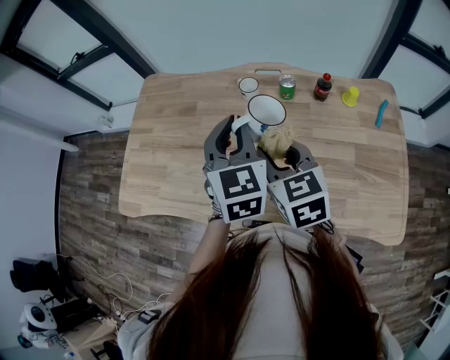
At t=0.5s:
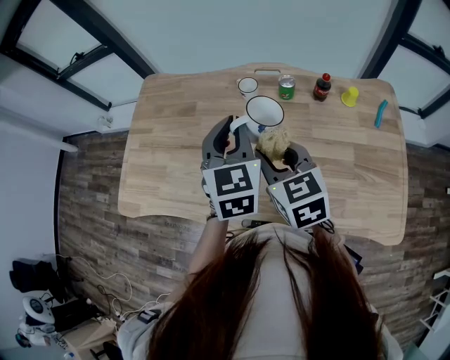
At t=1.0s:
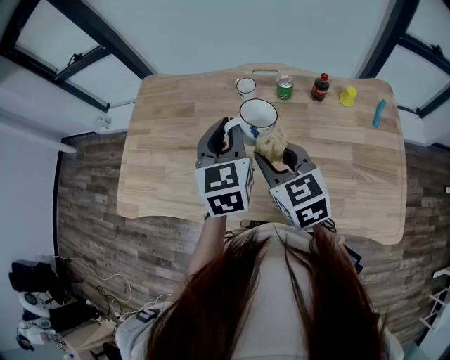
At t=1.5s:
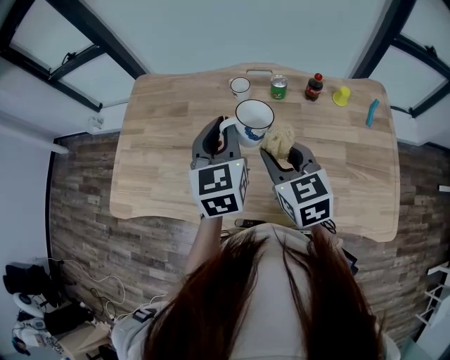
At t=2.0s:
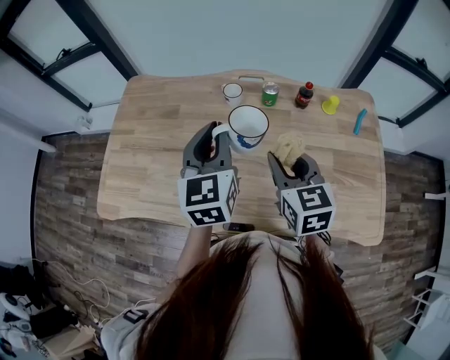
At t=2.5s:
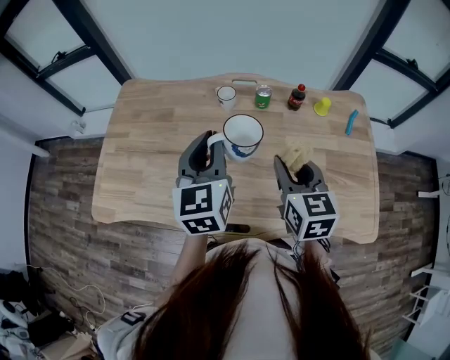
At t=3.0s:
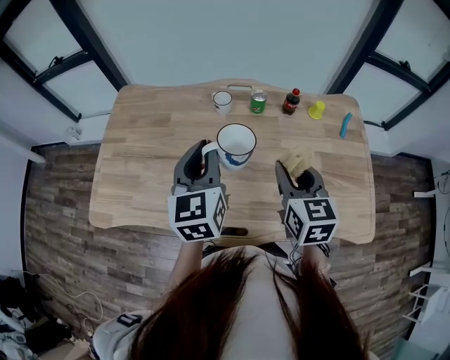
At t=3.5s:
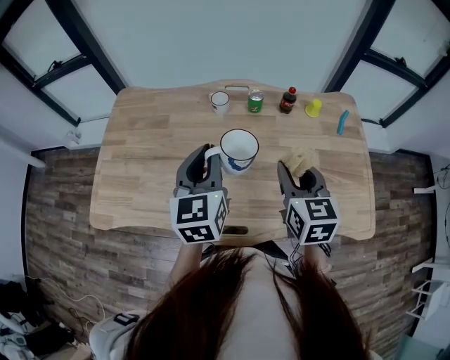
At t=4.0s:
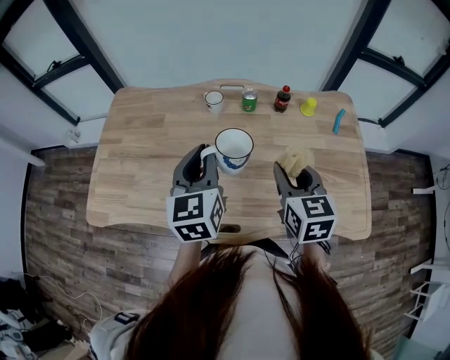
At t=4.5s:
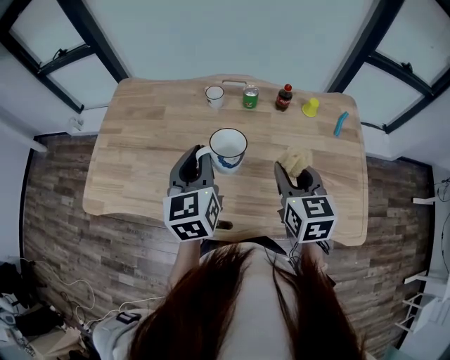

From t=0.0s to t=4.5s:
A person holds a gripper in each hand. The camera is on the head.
From t=0.0s to t=2.0s: The right gripper heads to the right, covering roughly 5 cm.
From t=2.0s to t=4.5s: The left gripper goes about 5 cm backward, while the right gripper shifts roughly 10 cm to the right.

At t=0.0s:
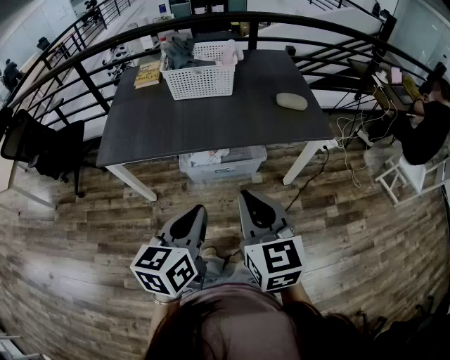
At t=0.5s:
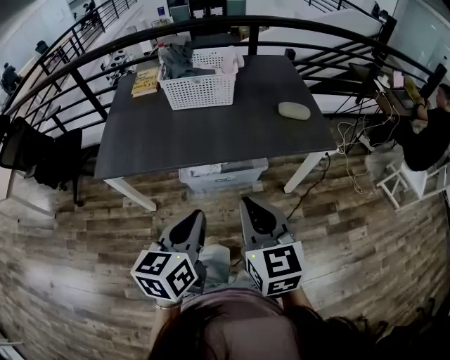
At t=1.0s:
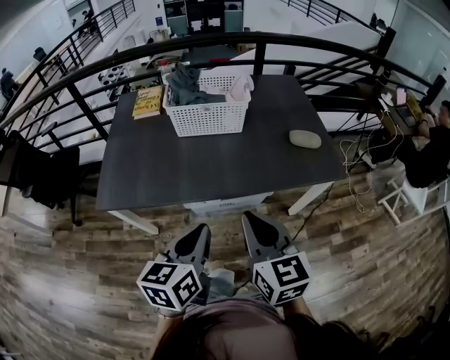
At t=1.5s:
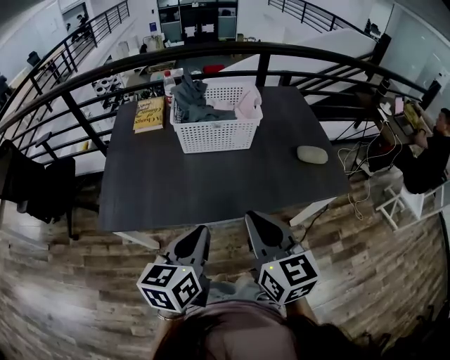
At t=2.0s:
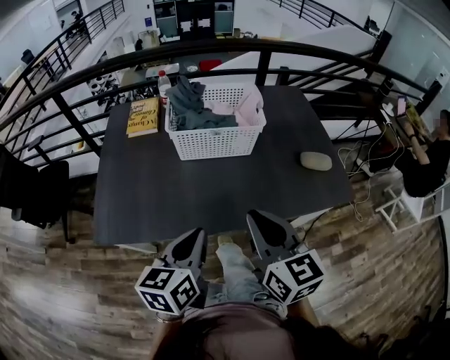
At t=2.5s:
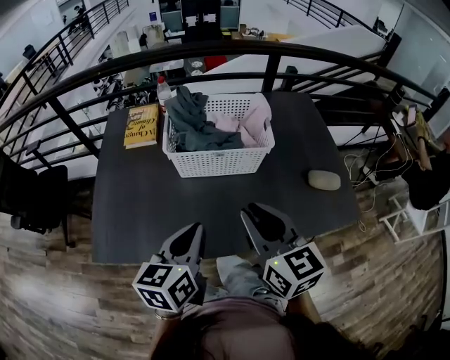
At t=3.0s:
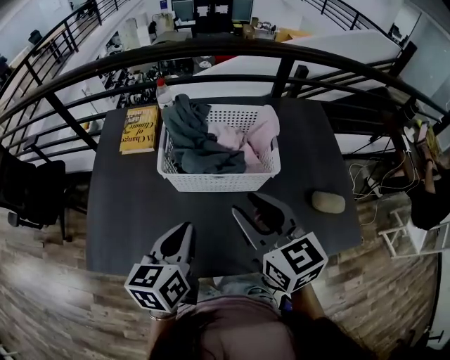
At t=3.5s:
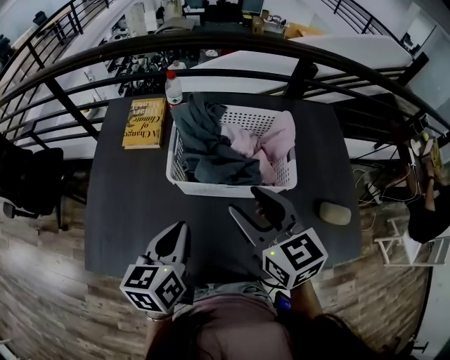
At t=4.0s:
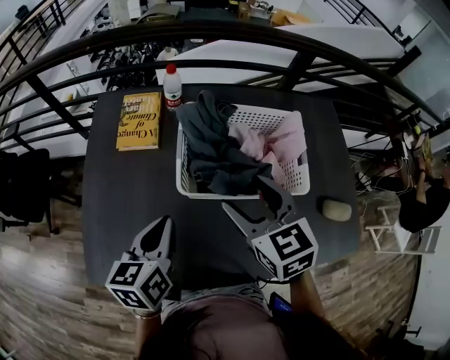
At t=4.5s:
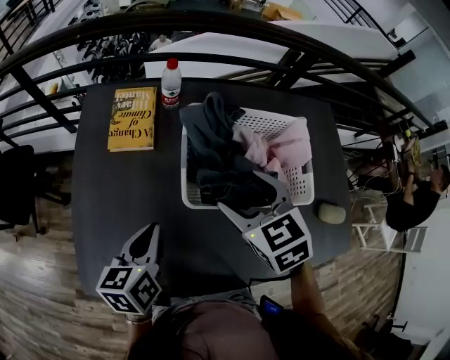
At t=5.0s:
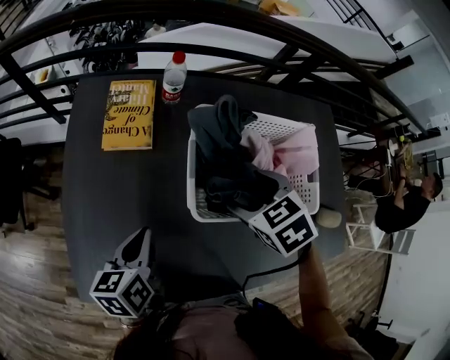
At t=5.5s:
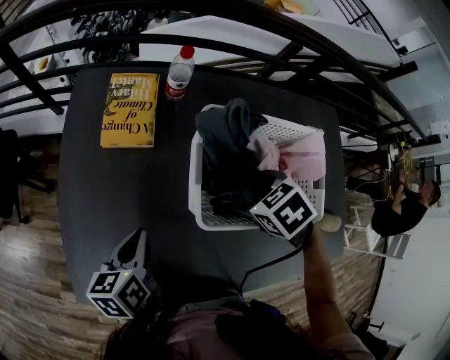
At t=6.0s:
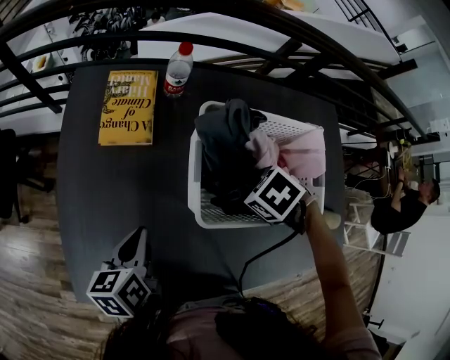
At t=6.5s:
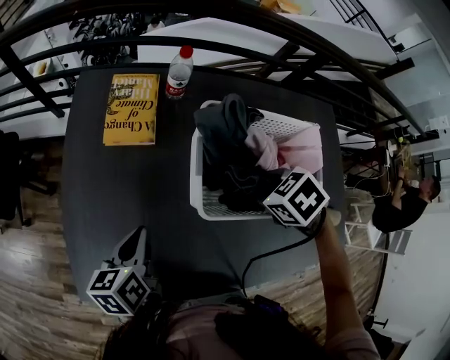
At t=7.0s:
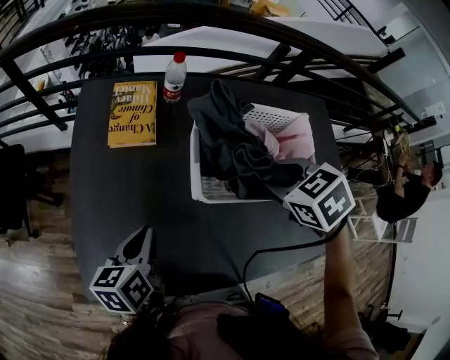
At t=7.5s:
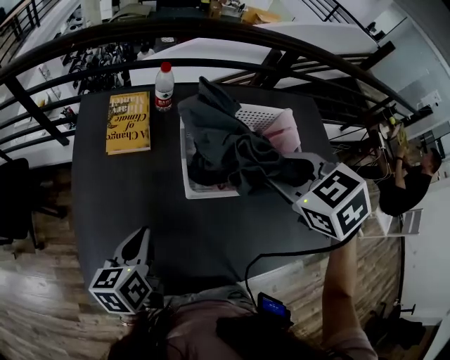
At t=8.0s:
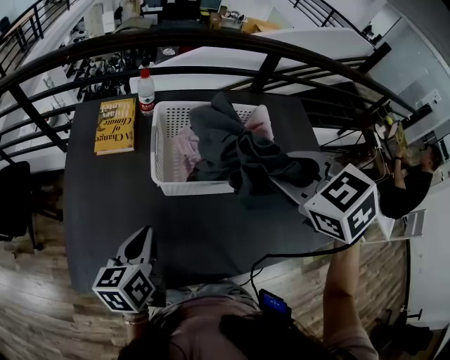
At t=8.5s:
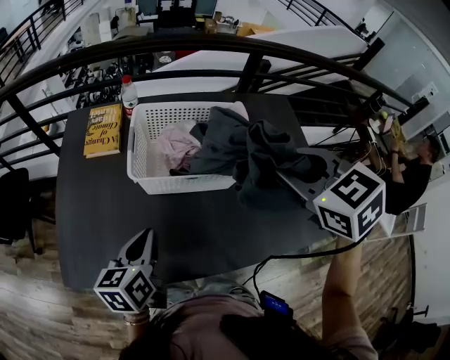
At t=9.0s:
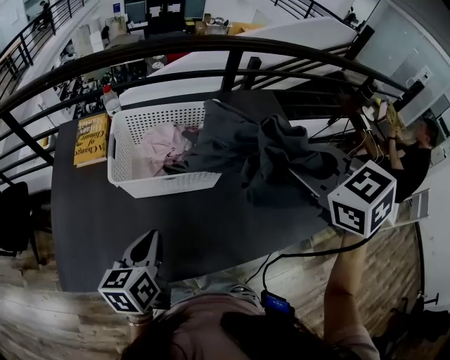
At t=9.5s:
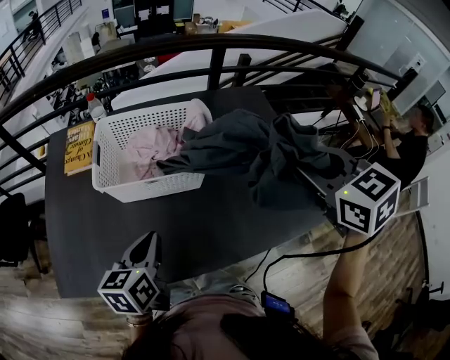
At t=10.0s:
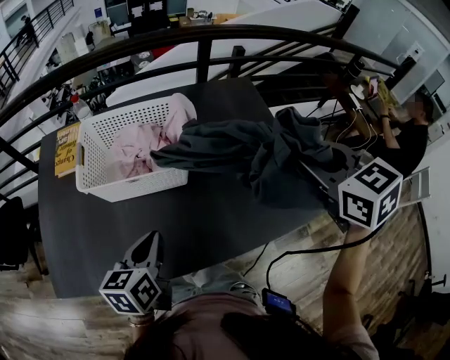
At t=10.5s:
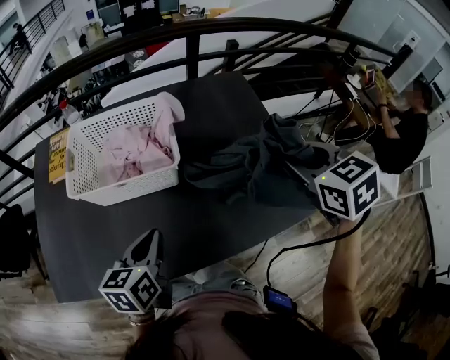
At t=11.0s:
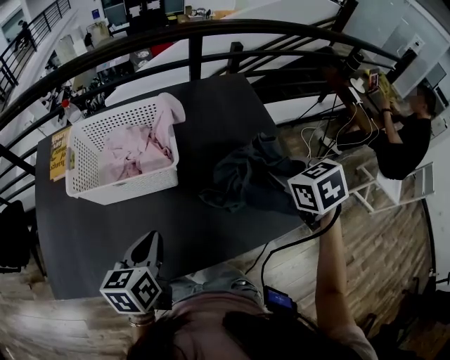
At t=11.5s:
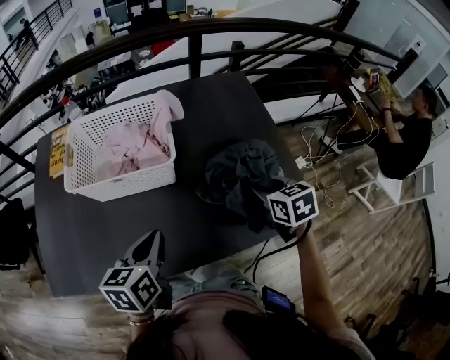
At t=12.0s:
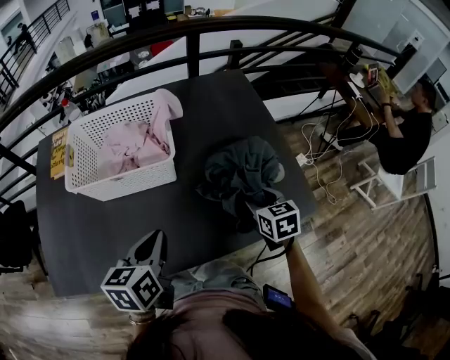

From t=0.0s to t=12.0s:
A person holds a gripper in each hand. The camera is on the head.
From t=0.0s to t=2.0s: The left gripper moves forward and to the left, some 30 cm. Meanwhile the right gripper goes some 30 cm forward.
From t=2.0s to t=4.0s: Both grippers travel together forward, roughly 30 cm. The right gripper changes its angle by approximately 30 degrees, and opens its fingers.
From t=4.0s to t=6.0s: The left gripper is displaced downward by about 10 cm, while the right gripper is displaced downward by roughly 15 cm, and angles its fingers downward, by roughly 50 degrees.
From t=6.0s to t=8.0s: The right gripper is displaced upward by some 25 cm, tilts its fingers approximately 40 degrees upward, and closes, while the left gripper moves roughly 15 cm.
From t=8.0s to t=10.0s: Both grippers move to the right, about 30 cm. The right gripper turns by about 20 degrees.
From t=10.0s to t=12.0s: The right gripper heads downward, covering approximately 30 cm, and turns by some 20 degrees, while the left gripper is displaced to the right by approximately 5 cm.

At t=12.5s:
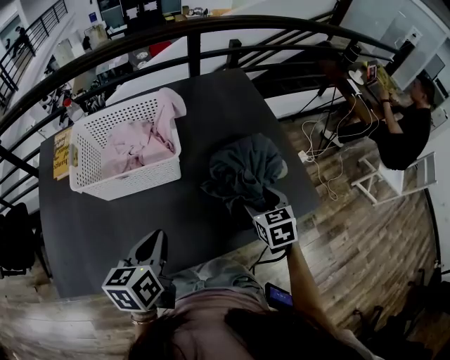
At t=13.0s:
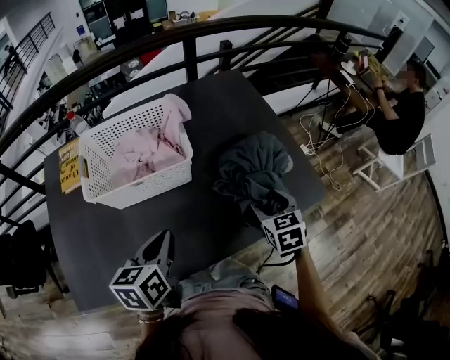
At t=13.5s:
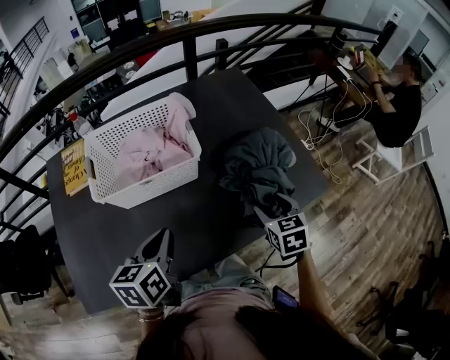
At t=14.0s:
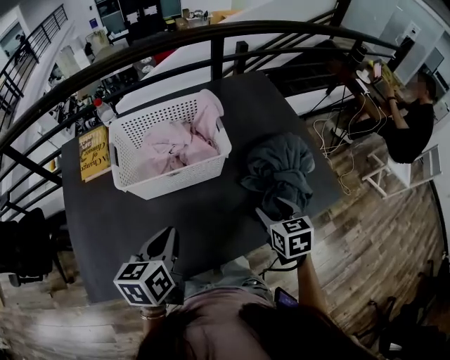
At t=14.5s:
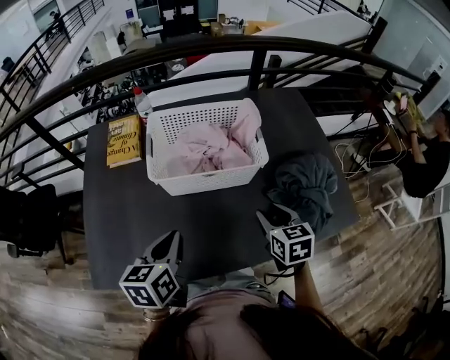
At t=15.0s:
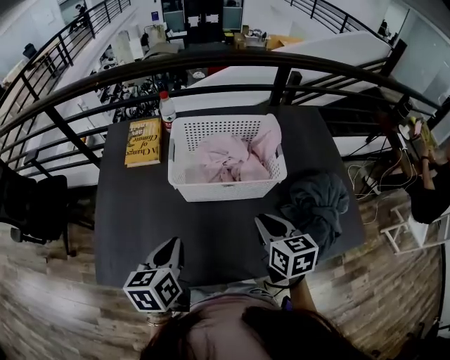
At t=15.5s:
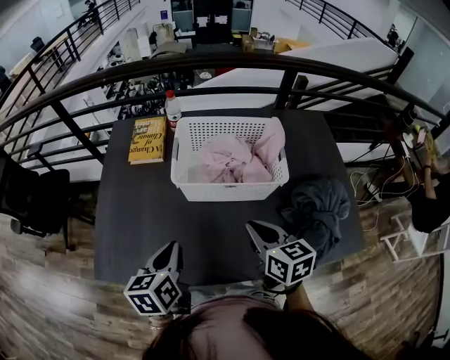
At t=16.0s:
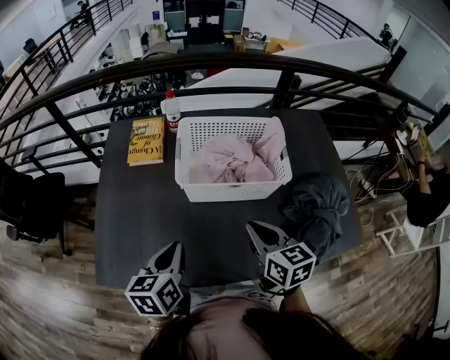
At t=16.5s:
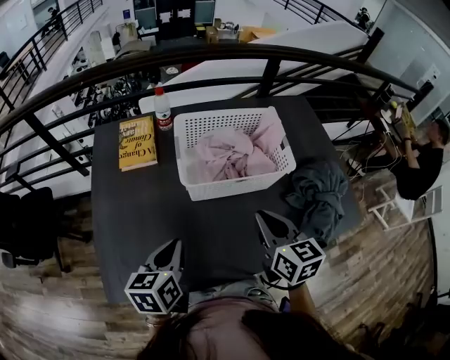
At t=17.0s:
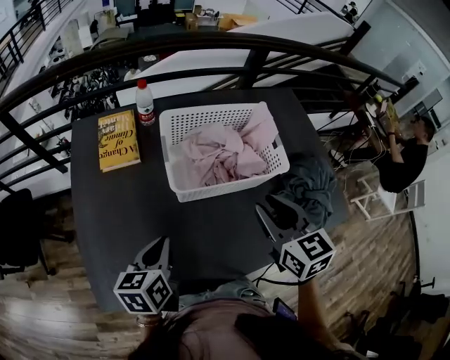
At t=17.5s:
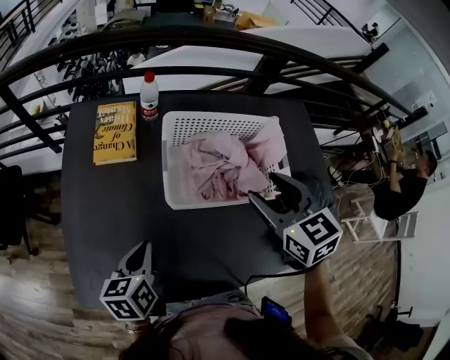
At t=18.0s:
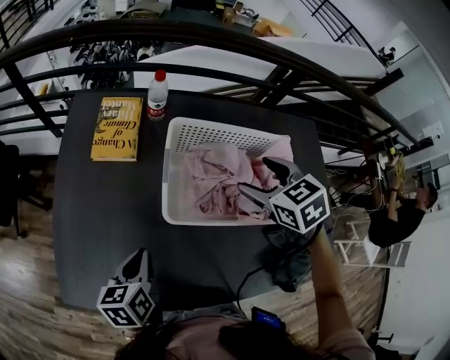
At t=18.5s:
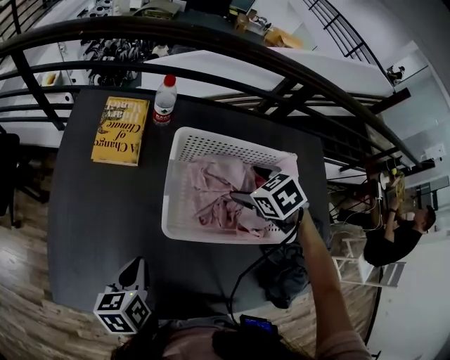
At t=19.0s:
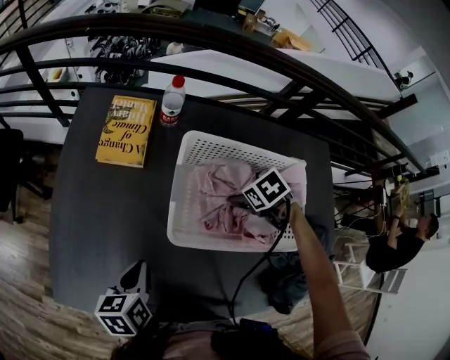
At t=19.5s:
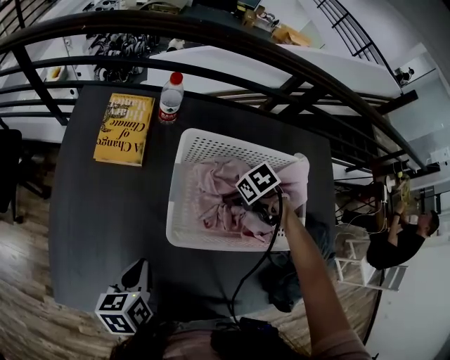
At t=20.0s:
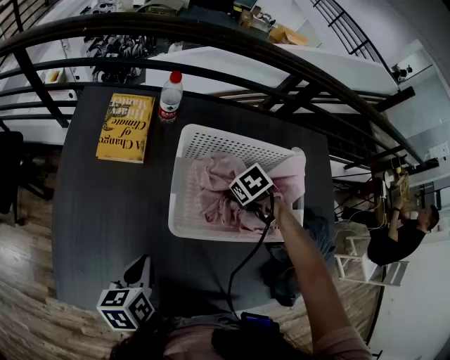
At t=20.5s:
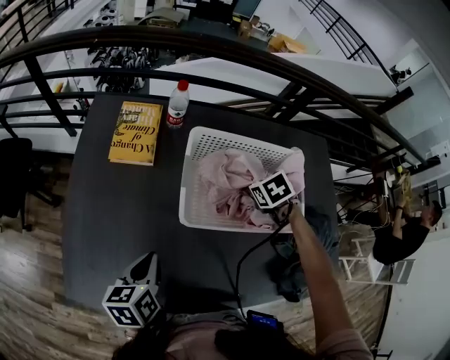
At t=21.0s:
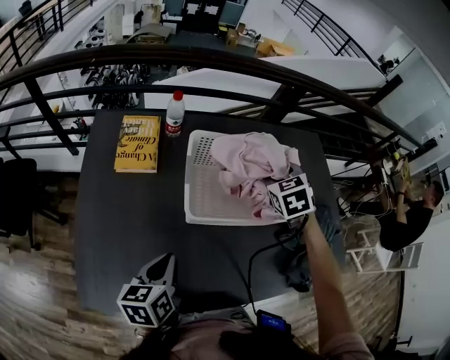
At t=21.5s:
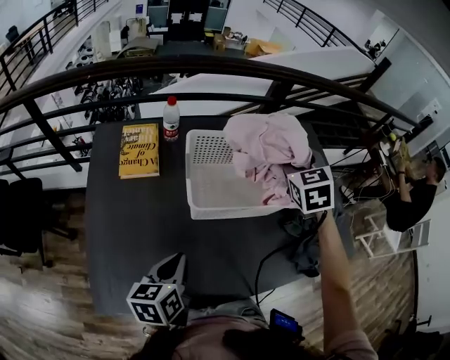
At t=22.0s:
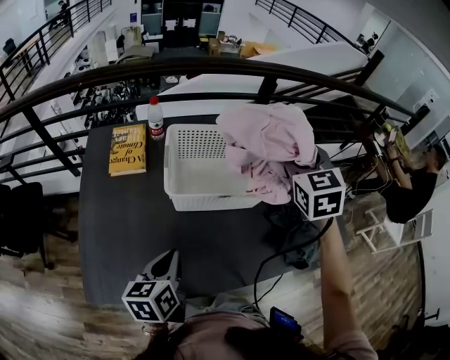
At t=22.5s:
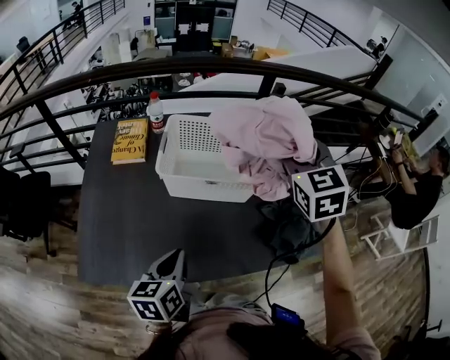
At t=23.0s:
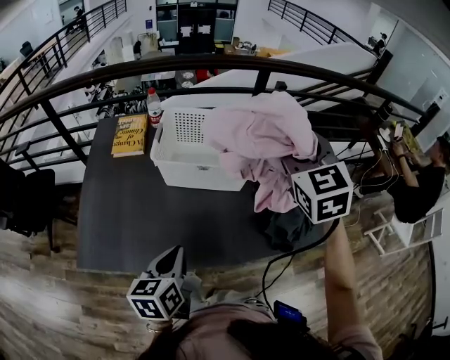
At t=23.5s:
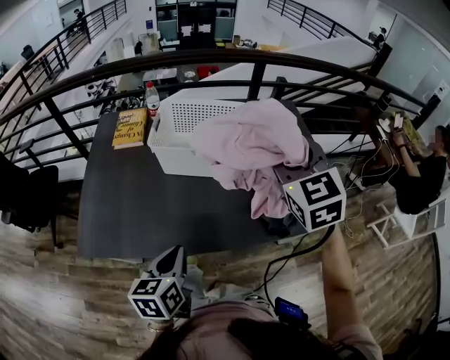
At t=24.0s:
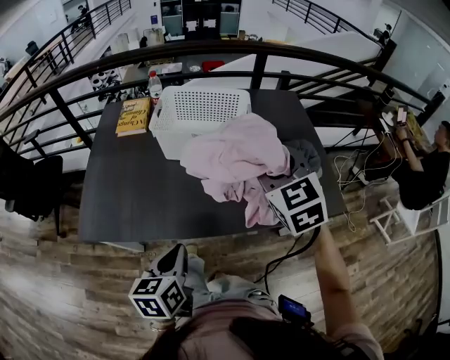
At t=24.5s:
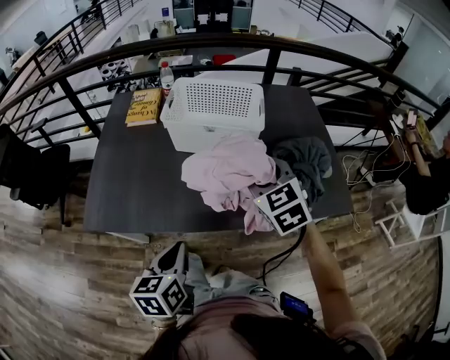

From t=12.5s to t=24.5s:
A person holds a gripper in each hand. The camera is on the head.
From t=12.5s to t=14.5s: The grippers both shift to the left by about 20 cm.
From t=14.5s to t=16.5s: The left gripper goes roughly 10 cm to the left. The right gripper moves to the left and upward, roughly 15 cm, and closes up.
From t=16.5s to t=18.5s: The left gripper heads downward and forward, covering some 10 cm, and turns by approximately 20 degrees, while the right gripper shifts roughly 25 cm forward, angles its fingers downward, by some 40 degrees, and opens its fingers.
From t=18.5s to t=20.5s: The right gripper reaches about 10 cm downward, then returns, and closes its fingers.
From t=20.5s to t=22.5s: The left gripper goes approximately 20 cm to the right, backward and upward, while the right gripper heads upward and backward, covering roughly 35 cm, and points its fingers roughly 50 degrees further upward.
From t=22.5s to t=24.5s: The right gripper shifts approximately 25 cm backward and downward, and changes its angle by some 20 degrees. The left gripper goes roughly 15 cm backward.
